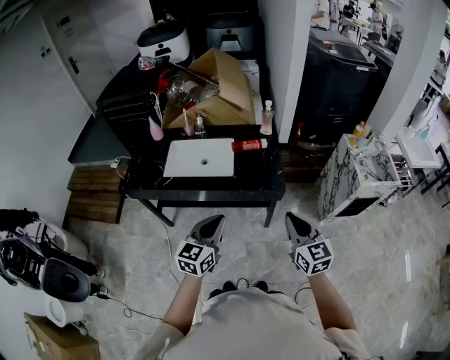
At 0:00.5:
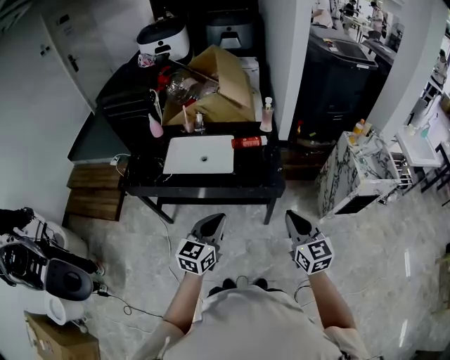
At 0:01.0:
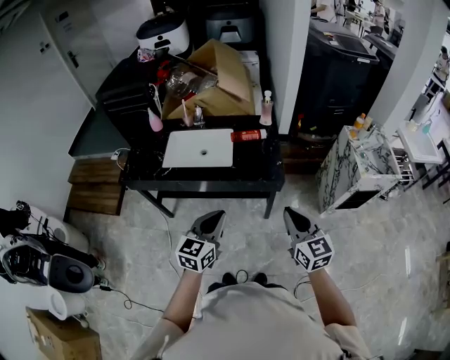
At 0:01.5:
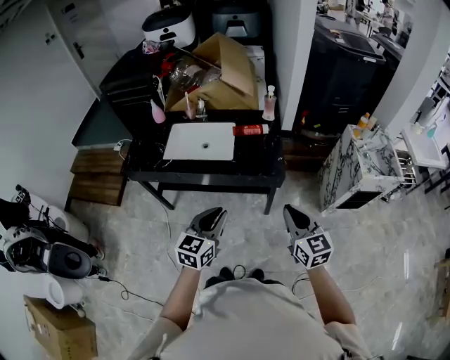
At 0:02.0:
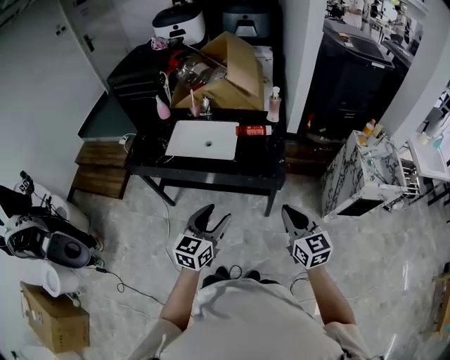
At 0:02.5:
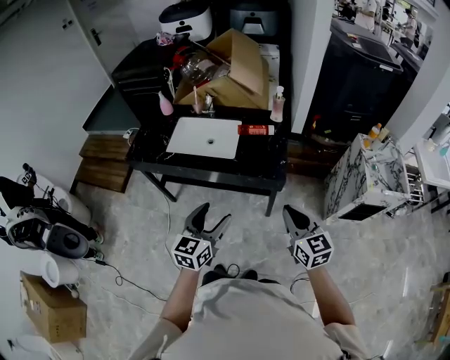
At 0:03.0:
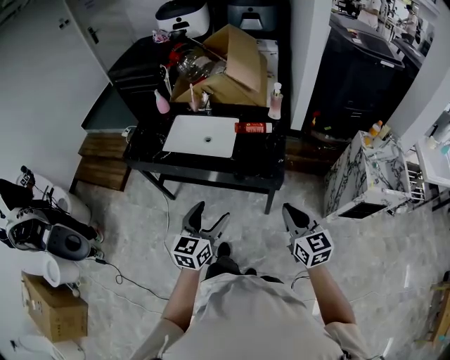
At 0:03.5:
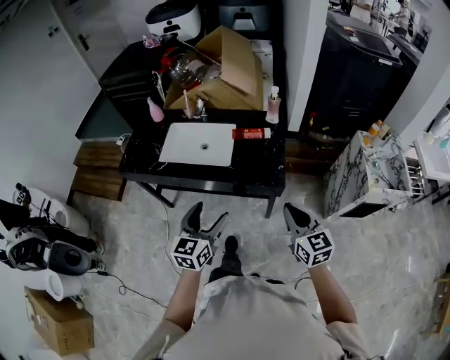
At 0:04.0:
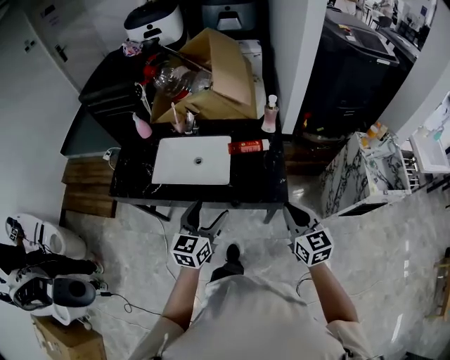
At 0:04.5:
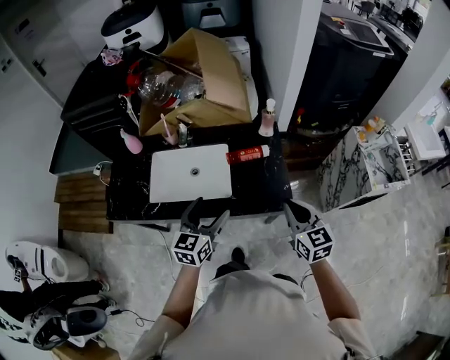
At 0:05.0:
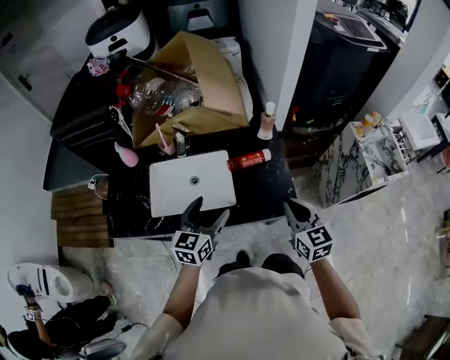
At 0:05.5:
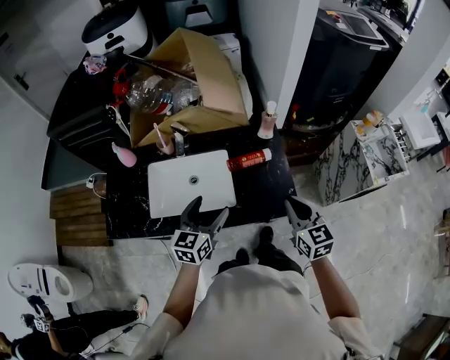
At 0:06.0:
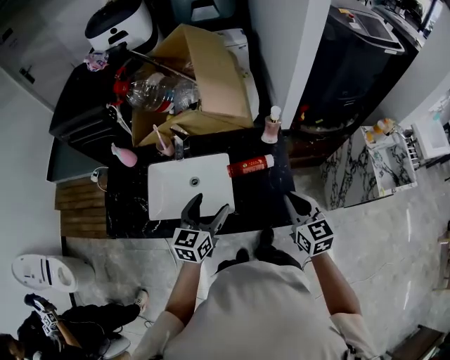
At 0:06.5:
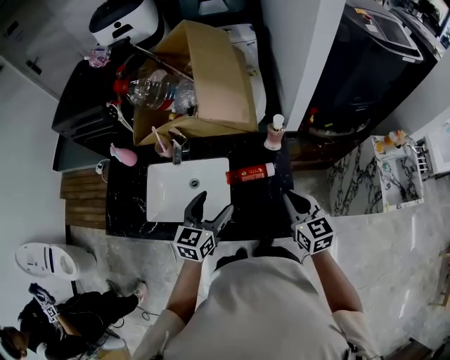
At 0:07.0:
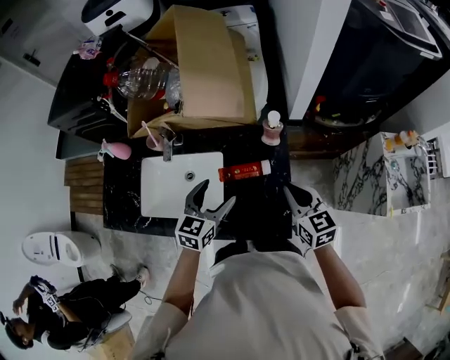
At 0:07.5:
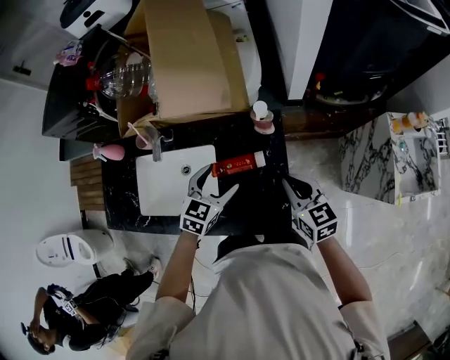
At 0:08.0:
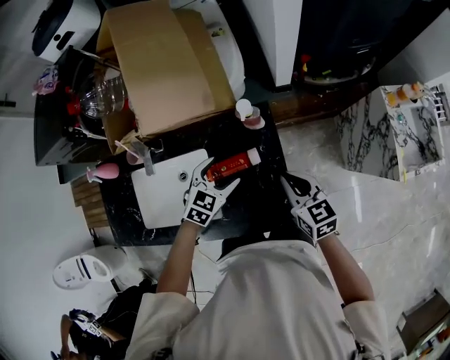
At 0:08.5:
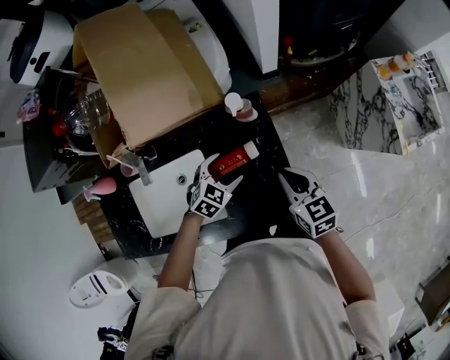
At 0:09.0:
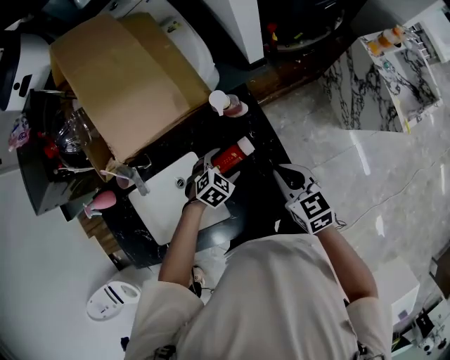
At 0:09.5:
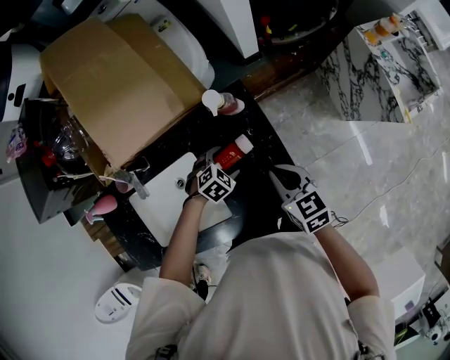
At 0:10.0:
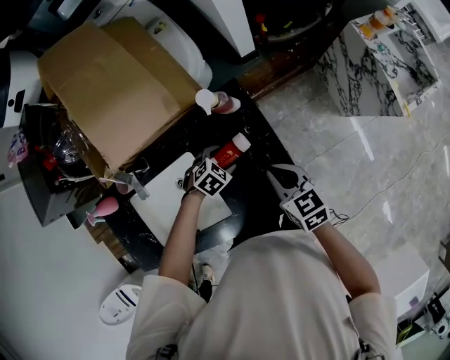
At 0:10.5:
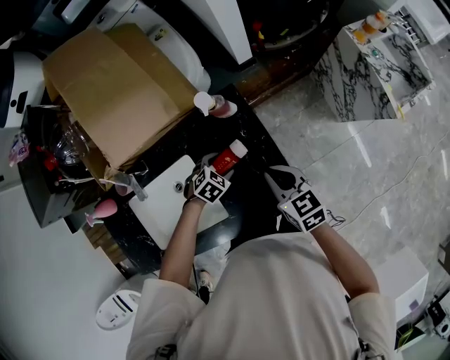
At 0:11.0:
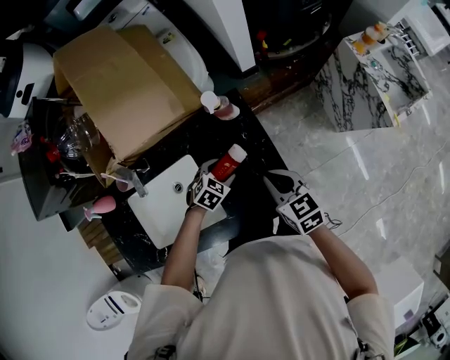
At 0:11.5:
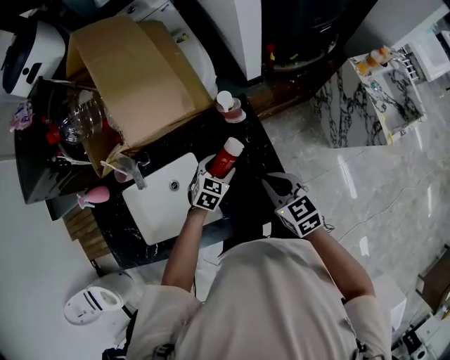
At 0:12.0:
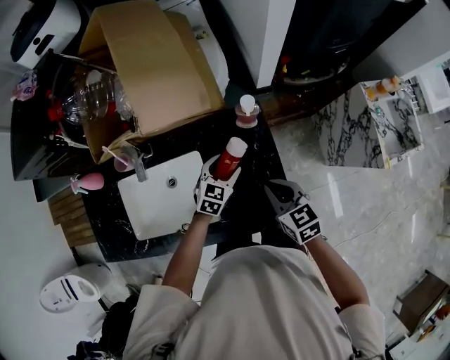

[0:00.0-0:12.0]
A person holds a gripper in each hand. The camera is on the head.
0:00.0 to 0:02.0: The left gripper opens up.
0:02.0 to 0:04.0: Both grippers move forward, about 20 cm.
0:04.0 to 0:06.0: Both grippers travel together forward, about 20 cm.
0:06.0 to 0:08.0: The grippers both shift forward, downward and to the right by approximately 25 cm. The left gripper turns by roughly 40 degrees.
0:08.0 to 0:10.0: The left gripper moves downward, approximately 15 cm, and swivels roughly 40 degrees. The right gripper travels downward by some 5 cm.
0:10.0 to 0:12.0: The right gripper is displaced upward by roughly 5 cm; the left gripper heads upward, covering about 10 cm, and points its fingers roughly 30 degrees further upward.

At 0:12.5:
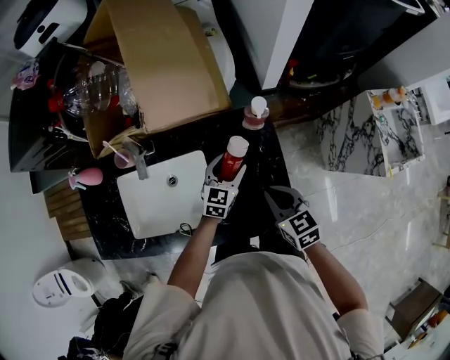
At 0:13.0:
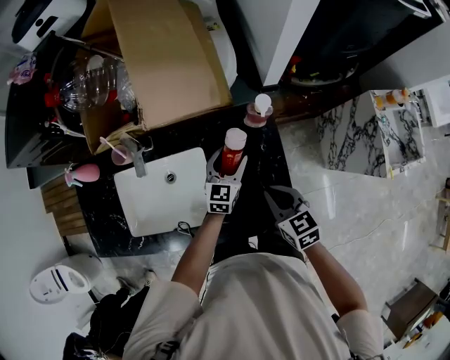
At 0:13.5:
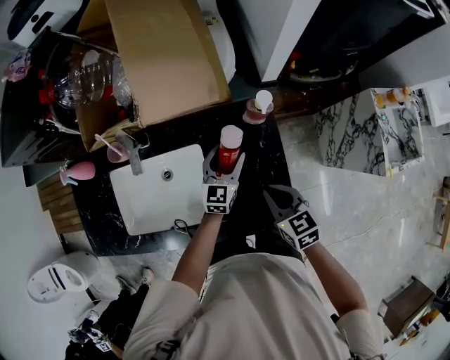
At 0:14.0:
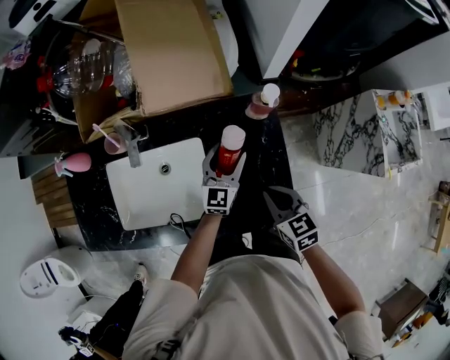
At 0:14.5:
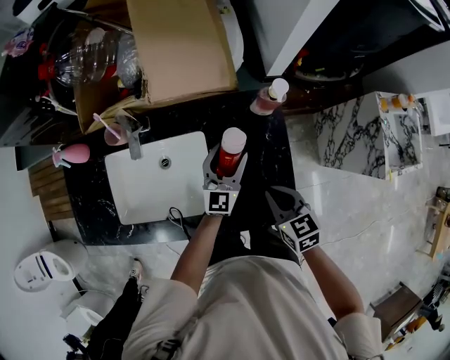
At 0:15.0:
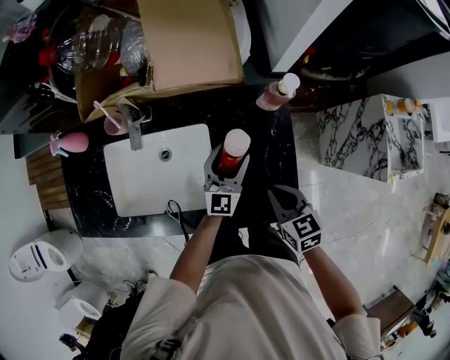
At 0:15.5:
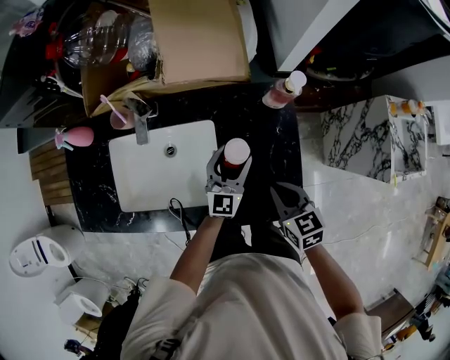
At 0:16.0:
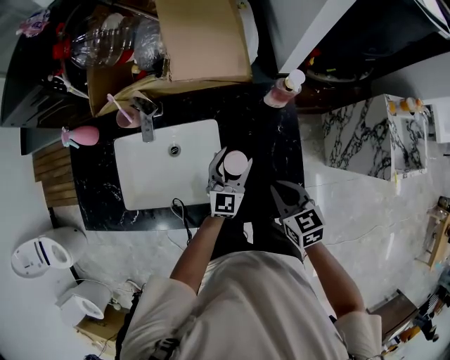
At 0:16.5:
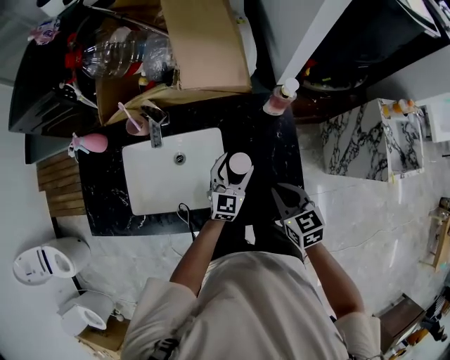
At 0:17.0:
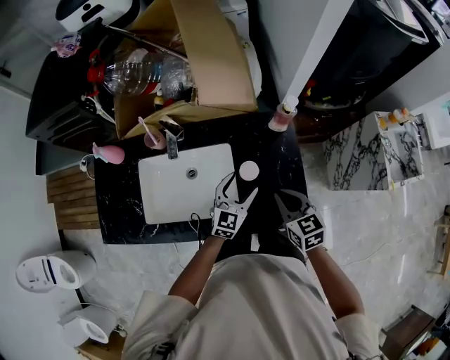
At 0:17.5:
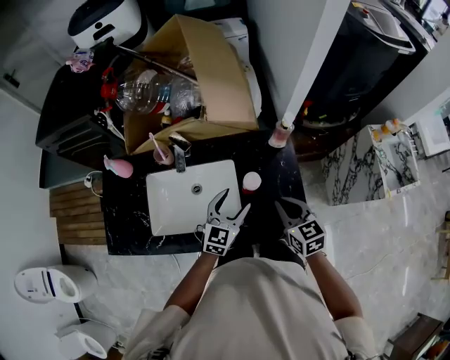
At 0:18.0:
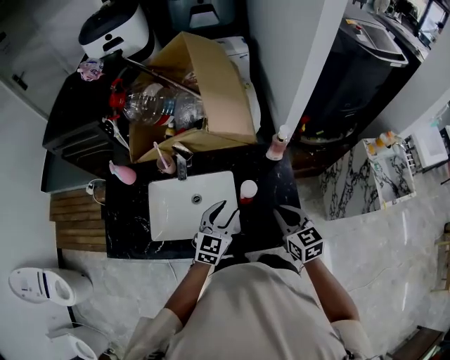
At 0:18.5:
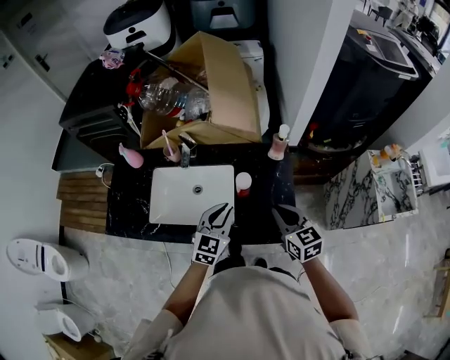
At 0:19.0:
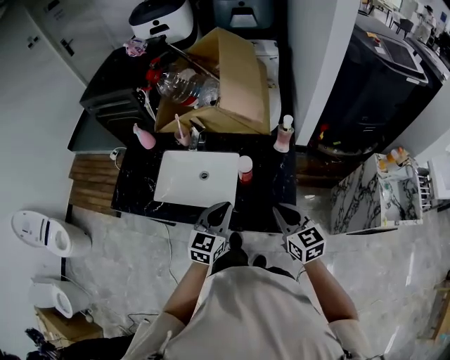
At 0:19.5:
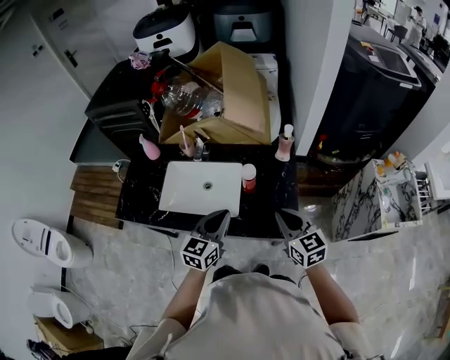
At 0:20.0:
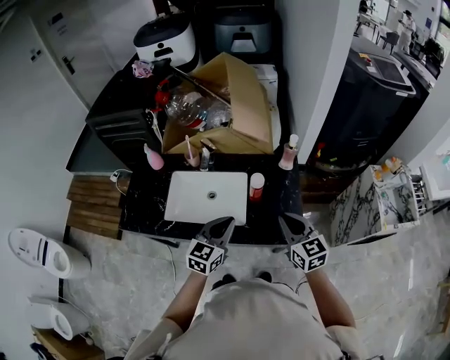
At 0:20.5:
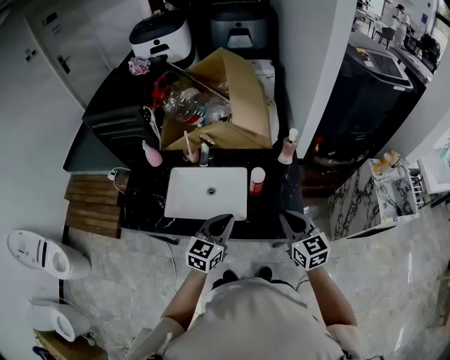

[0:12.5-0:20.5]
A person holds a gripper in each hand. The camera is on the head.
0:12.5 to 0:14.5: The left gripper rotates approximately 20 degrees.
0:14.5 to 0:16.5: The left gripper changes place by some 5 cm.
0:16.5 to 0:18.5: The left gripper goes about 20 cm upward and backward, and closes up, while the right gripper heads upward, covering some 10 cm.
0:18.5 to 0:20.5: The left gripper heads backward and to the left, covering some 10 cm. The right gripper heads backward and upward, covering about 10 cm.

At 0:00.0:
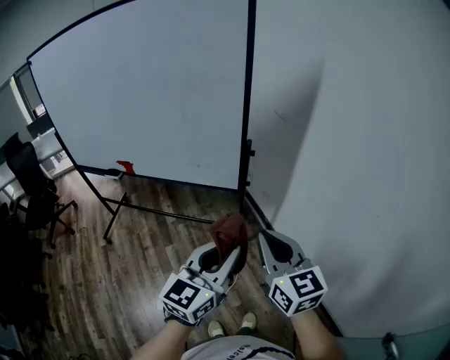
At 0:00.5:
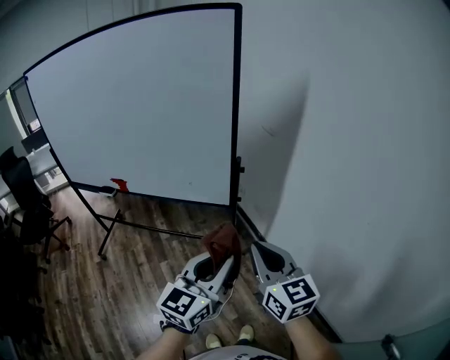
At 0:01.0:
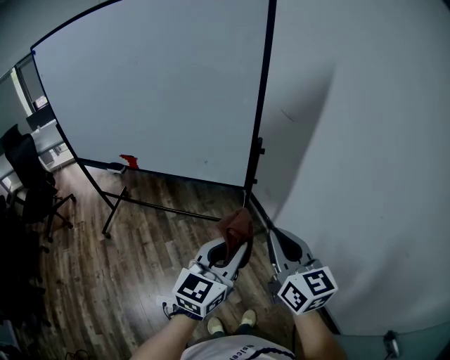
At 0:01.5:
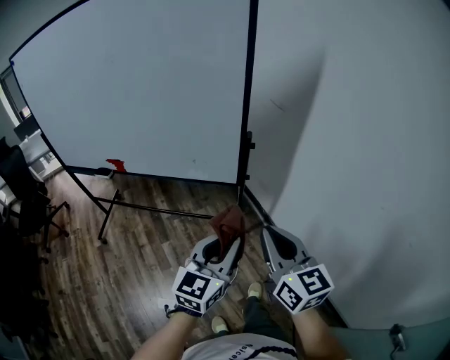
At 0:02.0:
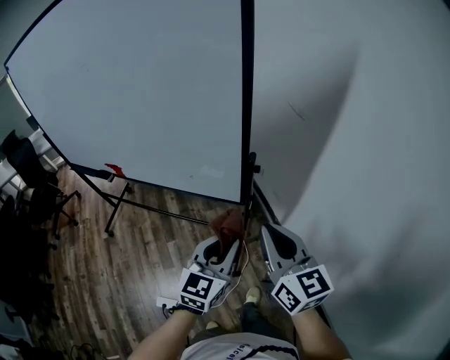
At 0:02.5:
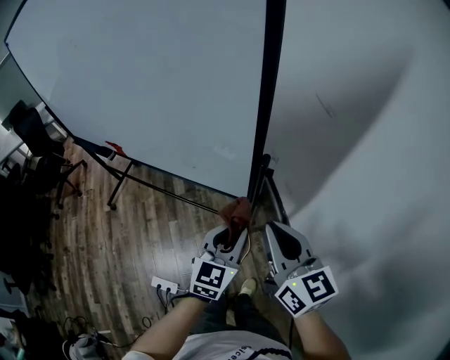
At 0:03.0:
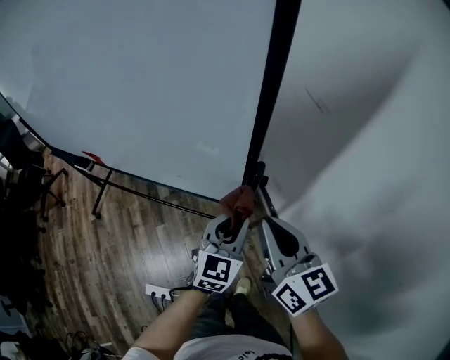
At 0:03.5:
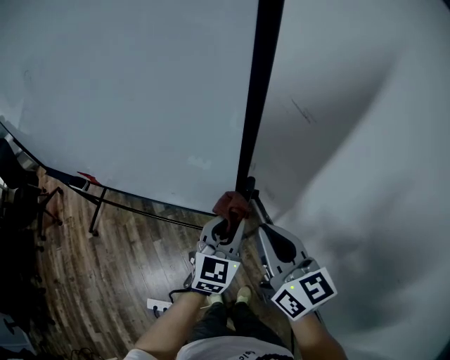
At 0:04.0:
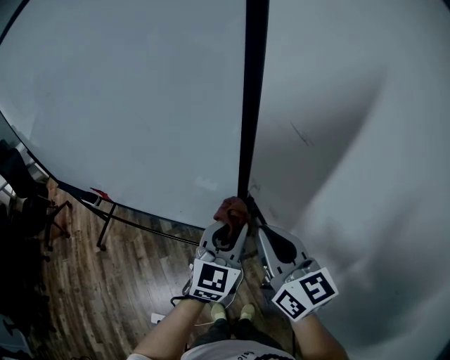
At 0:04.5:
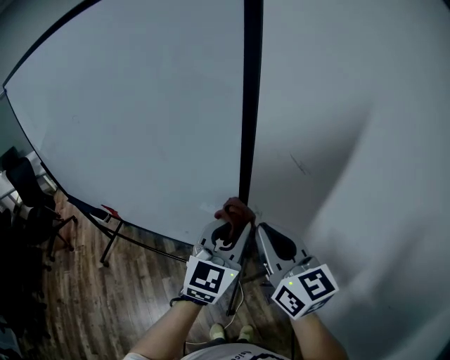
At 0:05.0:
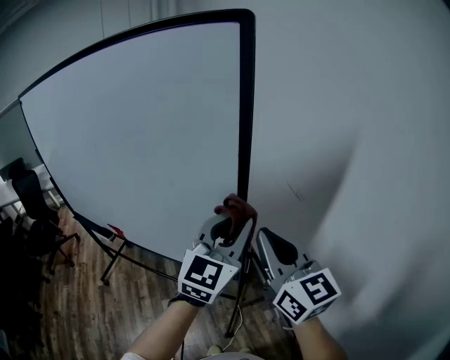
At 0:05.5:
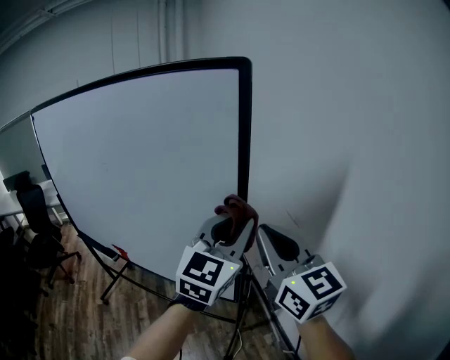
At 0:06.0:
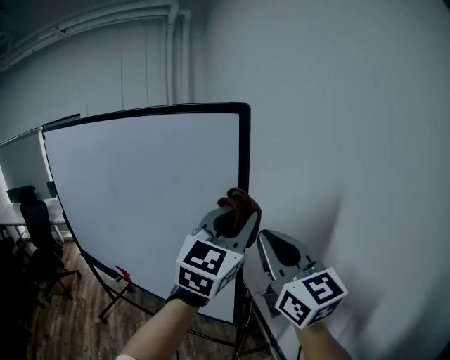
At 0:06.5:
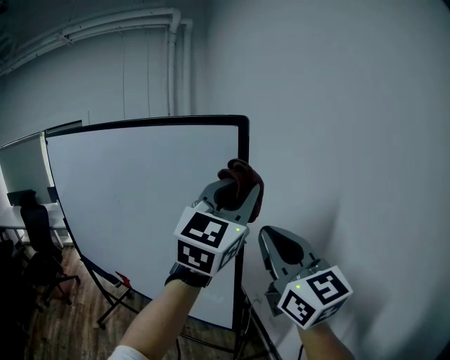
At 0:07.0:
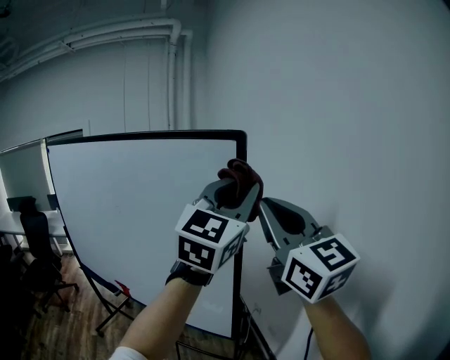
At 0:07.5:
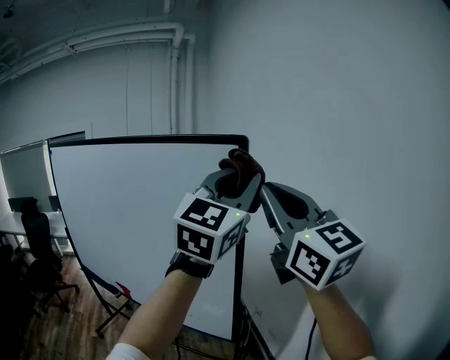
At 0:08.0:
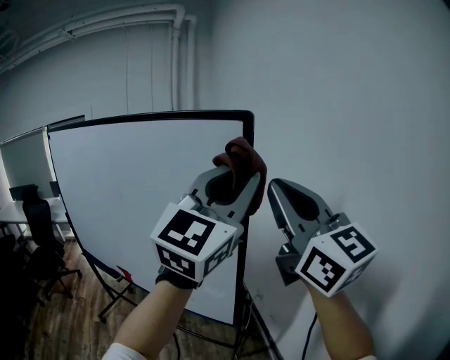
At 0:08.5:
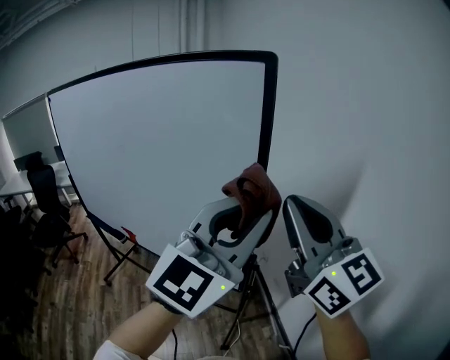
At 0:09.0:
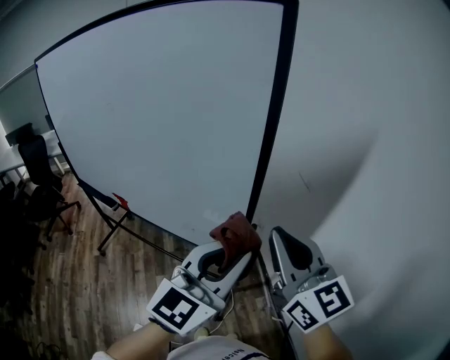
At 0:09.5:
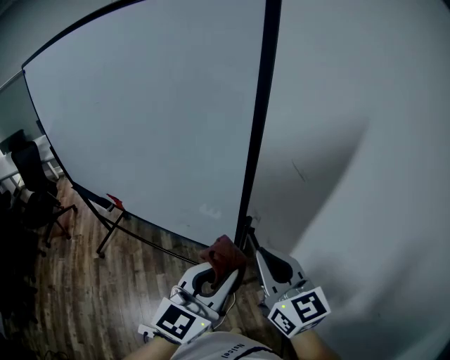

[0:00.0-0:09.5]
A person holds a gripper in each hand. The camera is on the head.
0:00.0 to 0:02.0: The right gripper travels forward by approximately 20 cm, while the left gripper moves forward and downward, some 25 cm.
0:02.0 to 0:04.0: Both grippers travel together forward, some 15 cm.
0:04.0 to 0:05.5: Both grippers move upward, some 25 cm.
0:05.5 to 0:07.5: Both grippers travel together upward, roughly 20 cm.
0:07.5 to 0:09.5: Both grippers travel together downward, roughly 35 cm. The left gripper swivels about 30 degrees. Meanwhile the right gripper rotates roughly 30 degrees.
